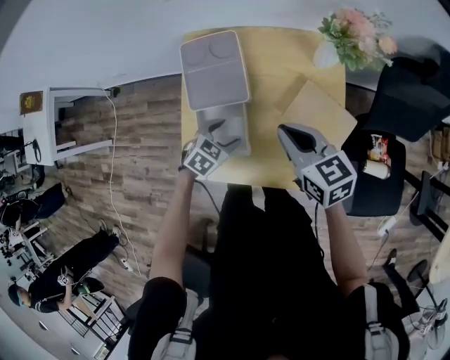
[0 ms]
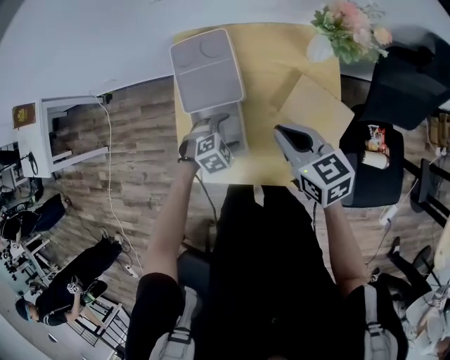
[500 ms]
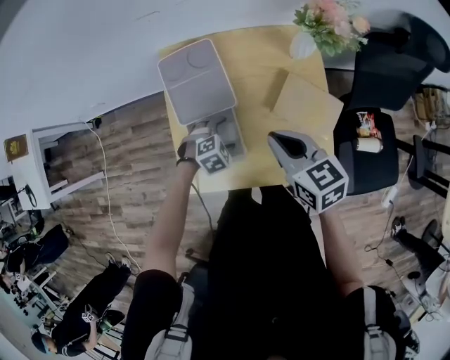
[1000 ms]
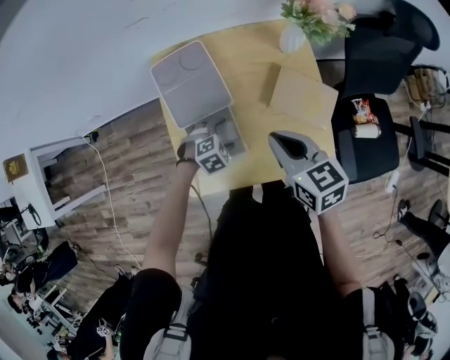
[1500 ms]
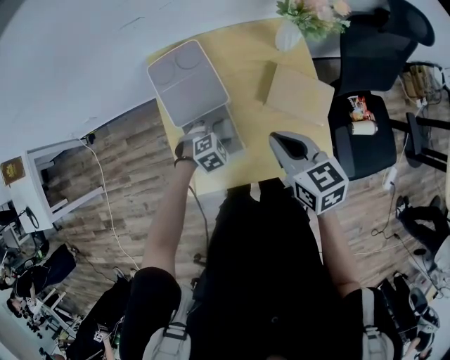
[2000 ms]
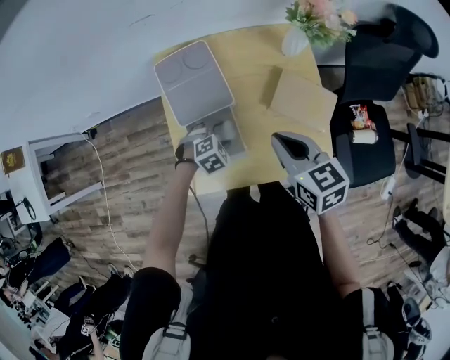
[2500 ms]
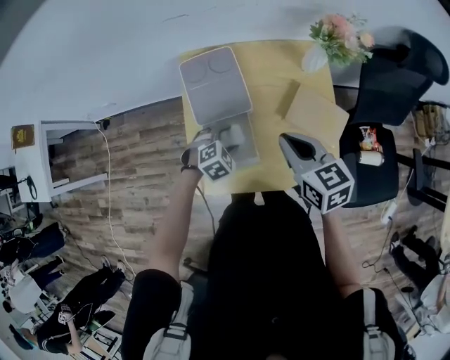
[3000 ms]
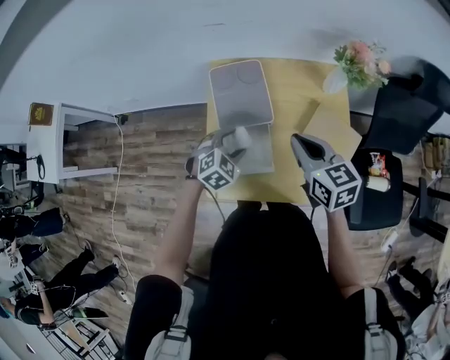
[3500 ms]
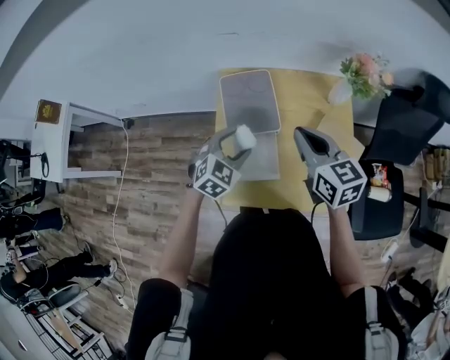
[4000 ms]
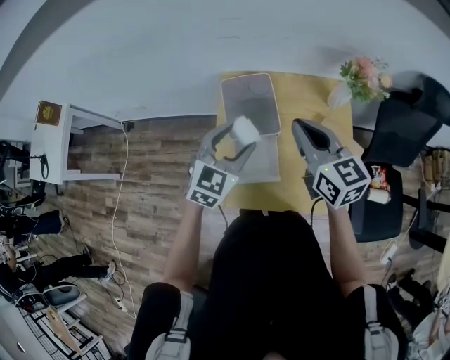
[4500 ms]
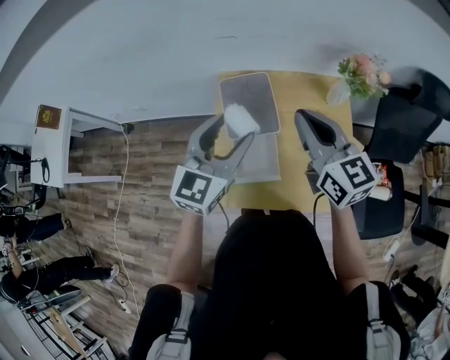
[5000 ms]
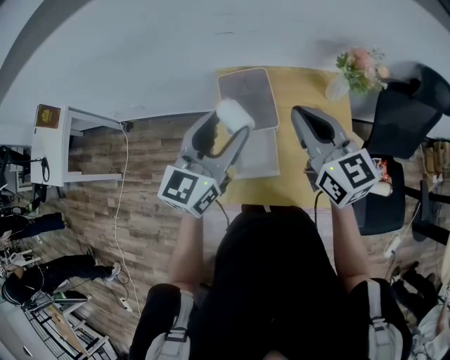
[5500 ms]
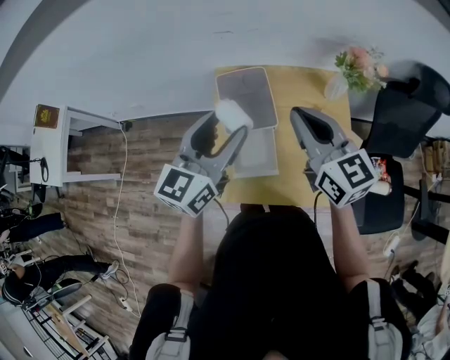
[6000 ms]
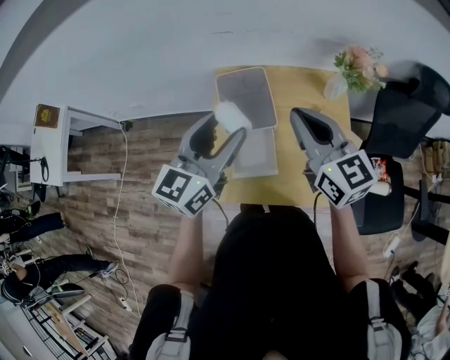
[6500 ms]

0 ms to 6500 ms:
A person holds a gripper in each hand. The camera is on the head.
0 ms to 2000 ms: The right gripper shifts some 5 cm backward. The left gripper rotates roughly 40 degrees.
2000 ms to 4500 ms: The left gripper goes some 30 cm upward, and points its fingers some 40 degrees further upward. Meanwhile the right gripper shifts some 15 cm upward, to the left and forward, and turns by roughly 20 degrees.
4500 ms to 6500 ms: The left gripper moves upward, about 10 cm, and turns by approximately 30 degrees.

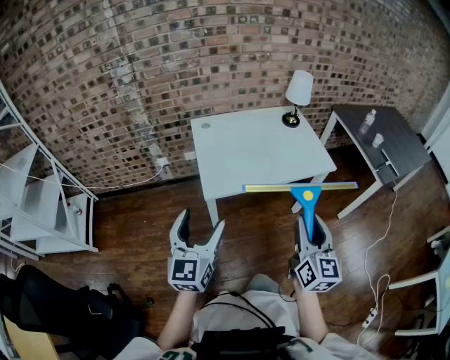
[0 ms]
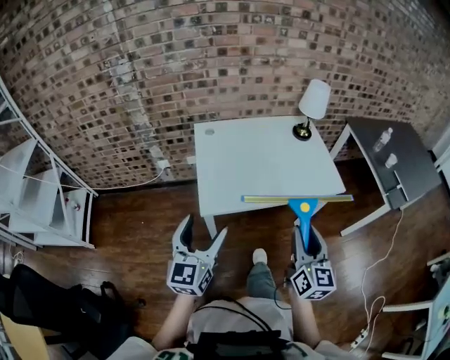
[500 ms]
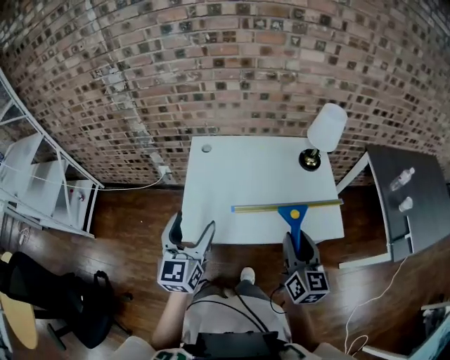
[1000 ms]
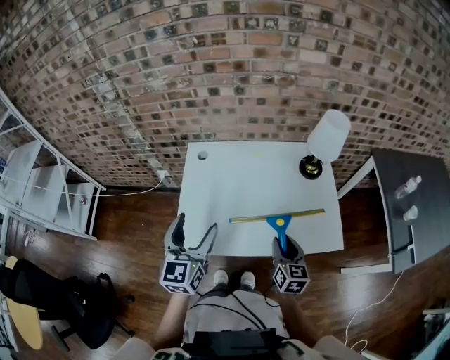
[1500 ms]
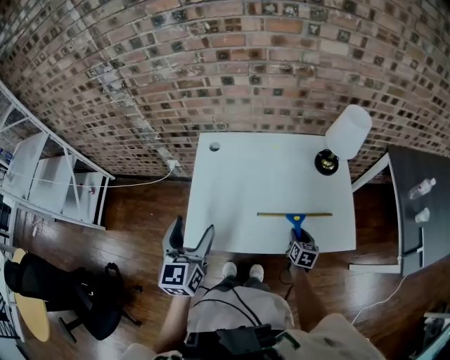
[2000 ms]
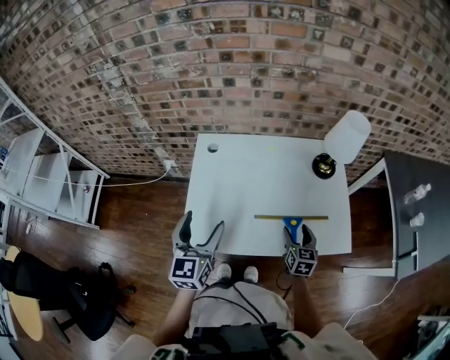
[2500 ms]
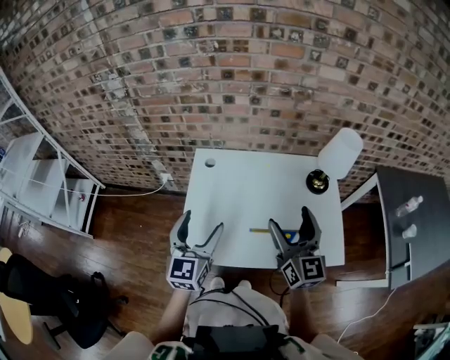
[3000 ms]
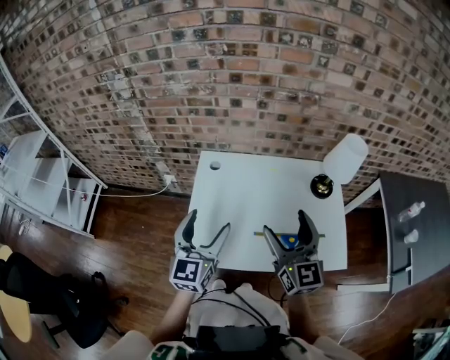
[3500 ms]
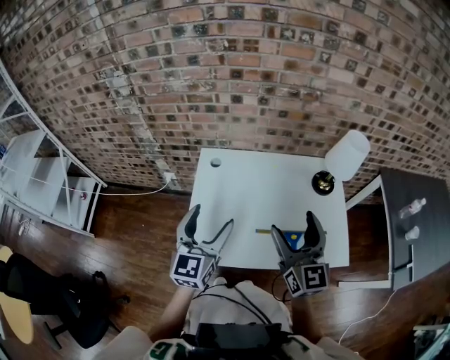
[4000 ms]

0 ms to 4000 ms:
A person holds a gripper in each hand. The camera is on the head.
0 ms to 2000 ms: The left gripper goes roughly 30 cm forward, and swivels roughly 20 degrees; the right gripper heads forward and downward, covering approximately 60 cm, and points its fingers about 40 degrees further downward.
2000 ms to 4000 ms: The right gripper is displaced upward by roughly 40 cm, points its fingers some 40 degrees further upward, and opens its fingers. Meanwhile the left gripper travels forward by some 5 cm.

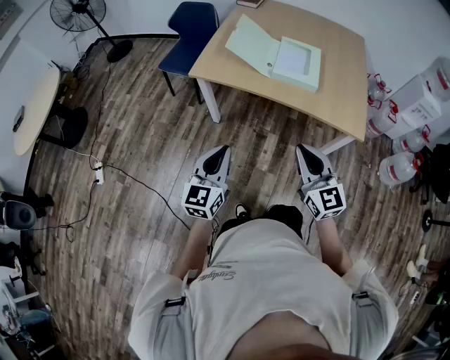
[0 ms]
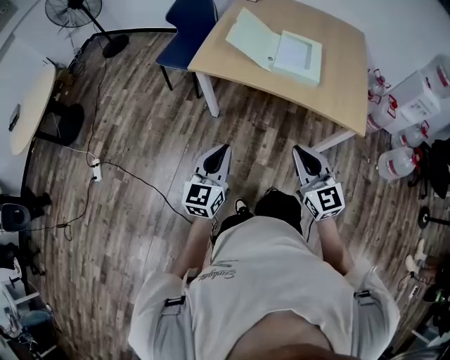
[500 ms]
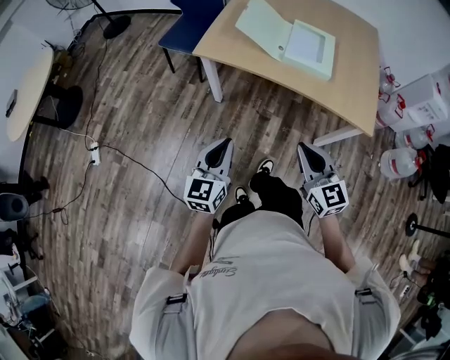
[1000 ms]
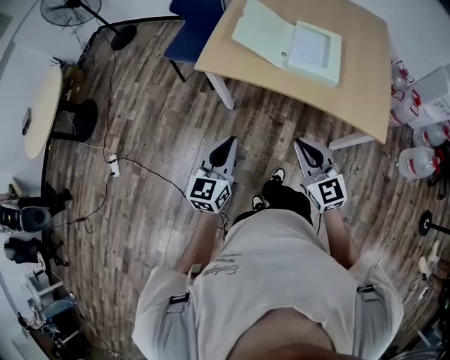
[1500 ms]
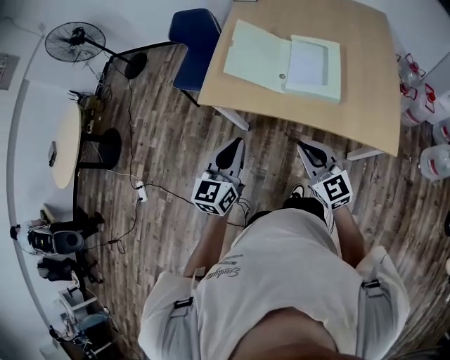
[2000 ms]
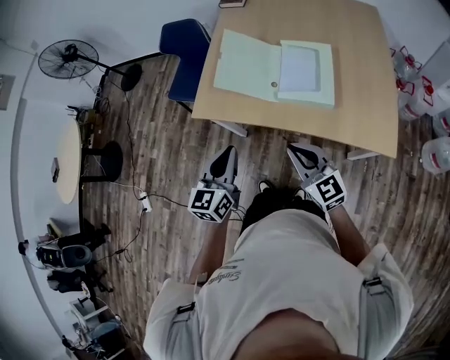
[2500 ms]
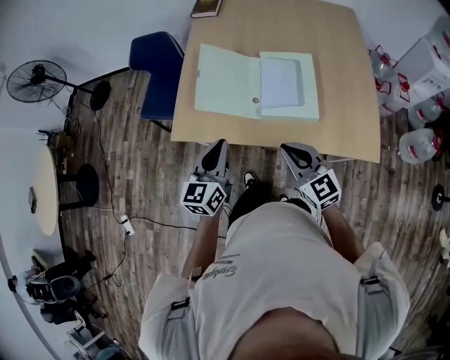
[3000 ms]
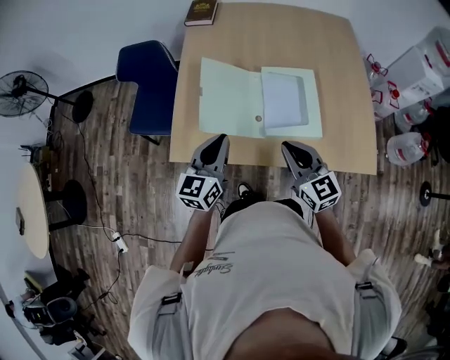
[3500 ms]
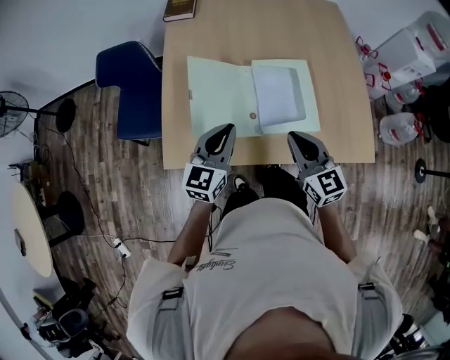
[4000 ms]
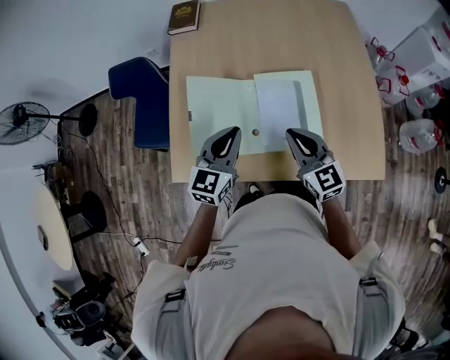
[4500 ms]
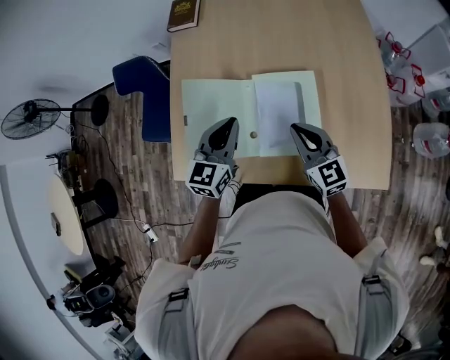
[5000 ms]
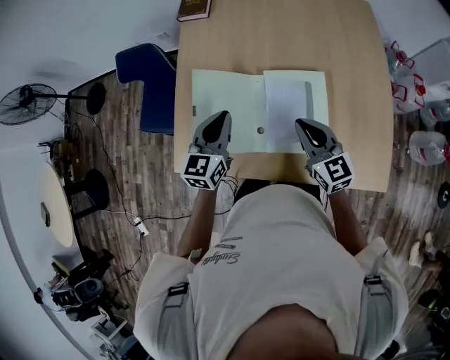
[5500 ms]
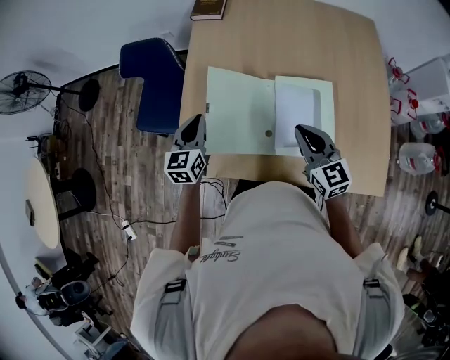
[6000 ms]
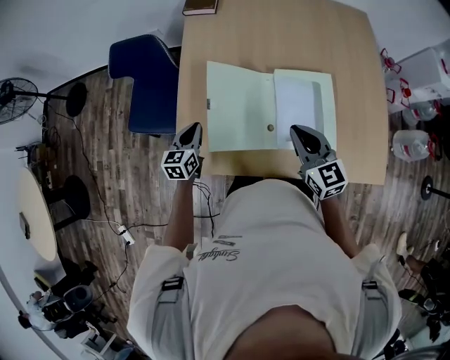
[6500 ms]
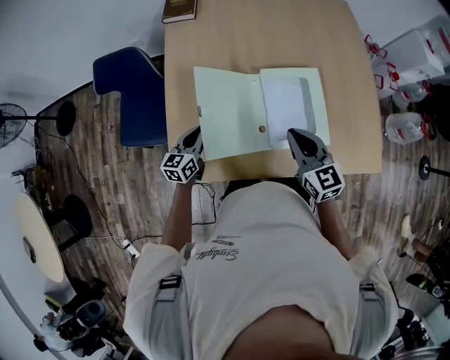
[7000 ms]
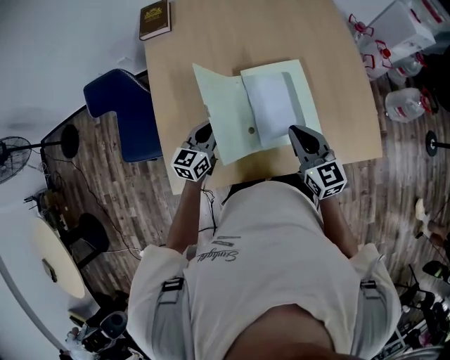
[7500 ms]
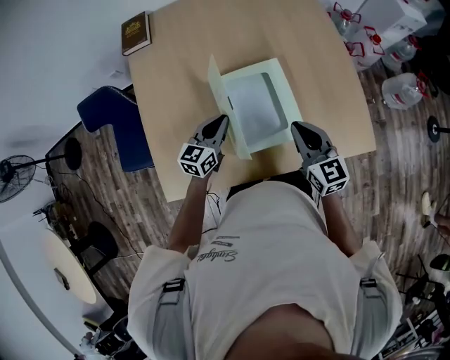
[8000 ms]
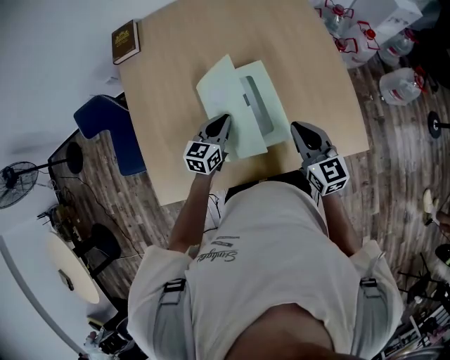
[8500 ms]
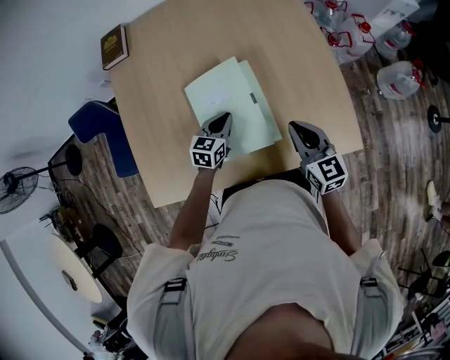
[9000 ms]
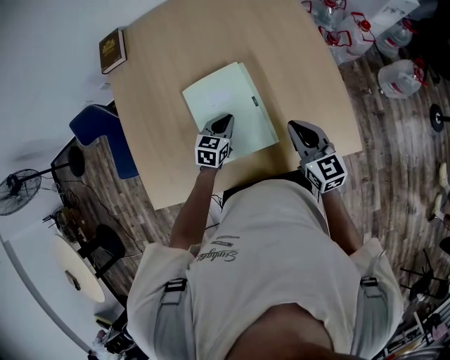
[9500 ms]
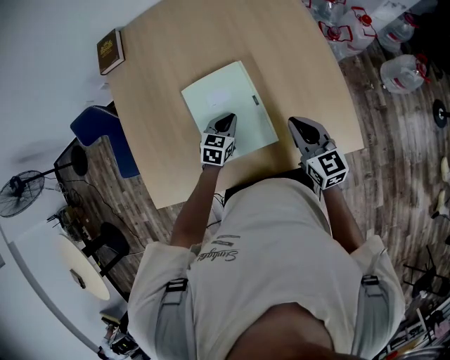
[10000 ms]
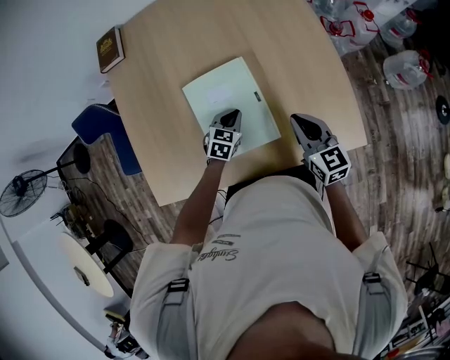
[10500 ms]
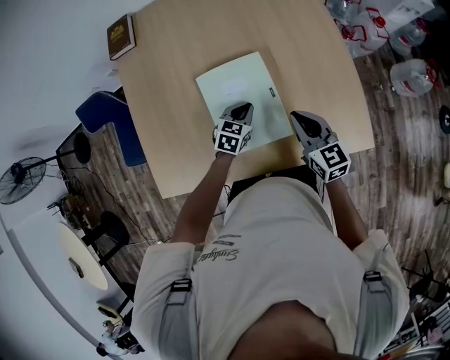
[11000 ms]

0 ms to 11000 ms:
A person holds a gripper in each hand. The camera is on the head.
0 ms to 2000 ms: The grippers both shift forward by approximately 20 cm.
2000 ms to 3500 ms: Both grippers travel together forward, about 20 cm.
3500 ms to 5500 ms: The right gripper shifts some 20 cm forward and to the right. Meanwhile the left gripper is displaced forward by about 15 cm.
5500 ms to 7500 ms: The left gripper heads downward, covering about 10 cm, and swivels about 20 degrees.
7500 ms to 9000 ms: Both grippers travel together to the right, about 20 cm.

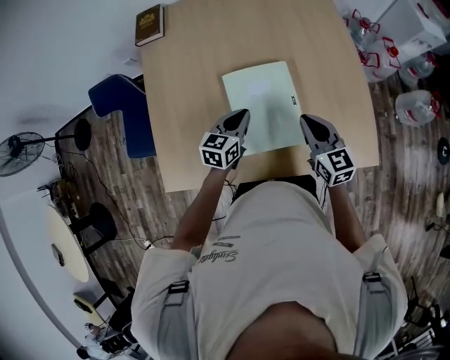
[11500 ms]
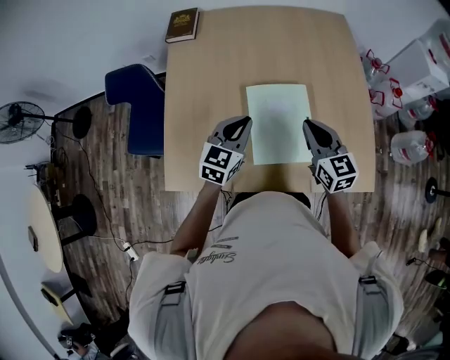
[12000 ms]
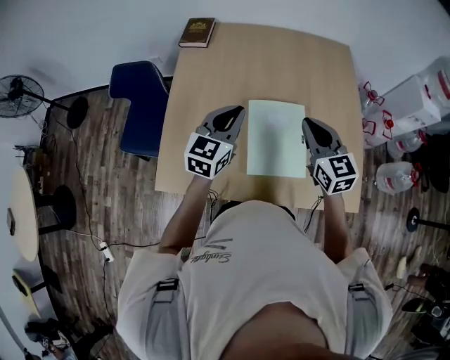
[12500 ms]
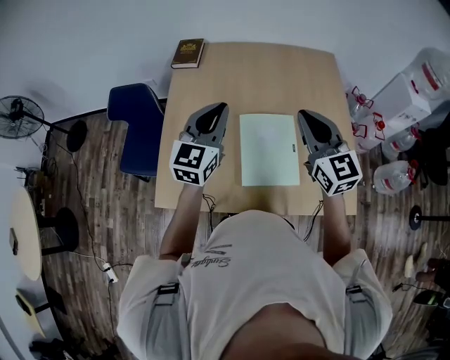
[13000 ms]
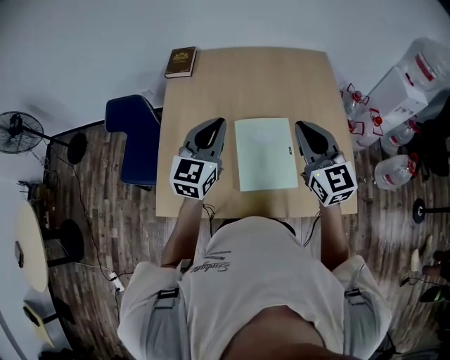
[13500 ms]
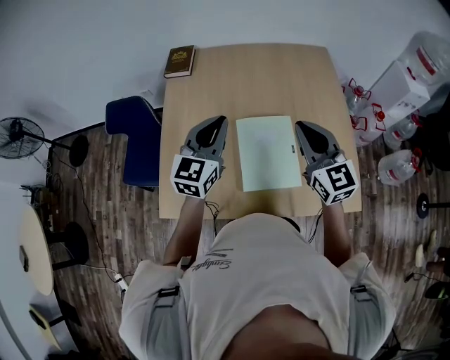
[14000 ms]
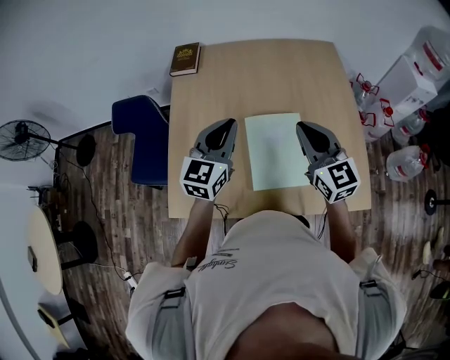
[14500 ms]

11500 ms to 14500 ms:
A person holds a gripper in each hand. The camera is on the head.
11500 ms to 13000 ms: The right gripper is displaced upward by about 25 cm, and rotates approximately 20 degrees, while the left gripper goes about 30 cm upward and to the left, and changes its angle by some 30 degrees.
13000 ms to 14500 ms: The grippers stay close to where they were, moving slightly.

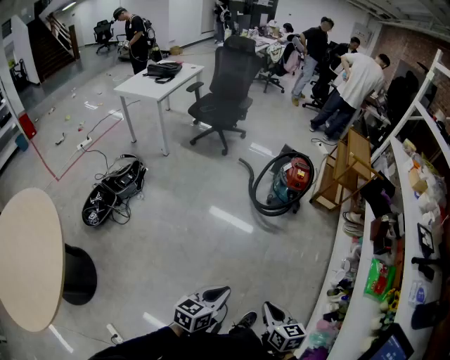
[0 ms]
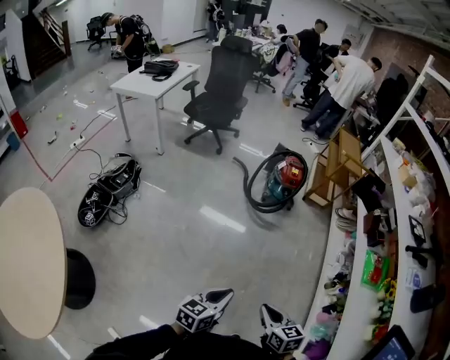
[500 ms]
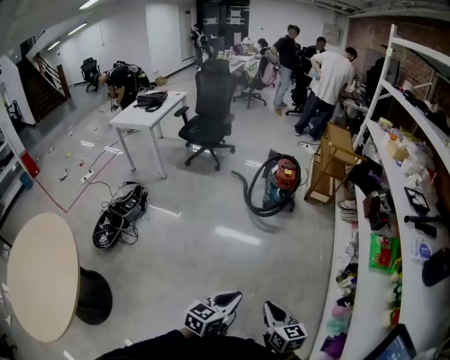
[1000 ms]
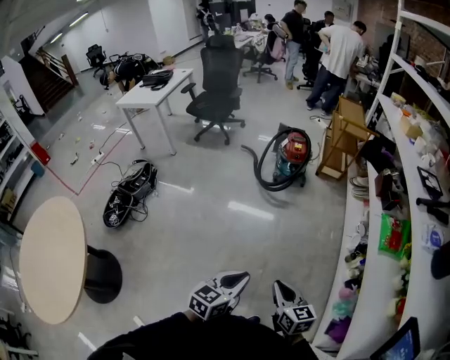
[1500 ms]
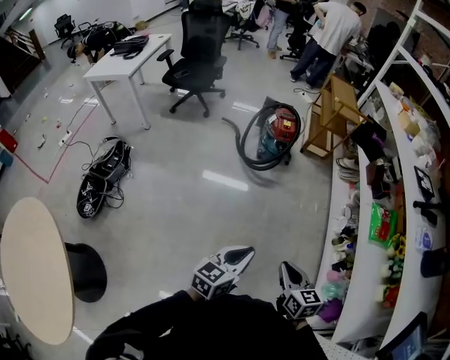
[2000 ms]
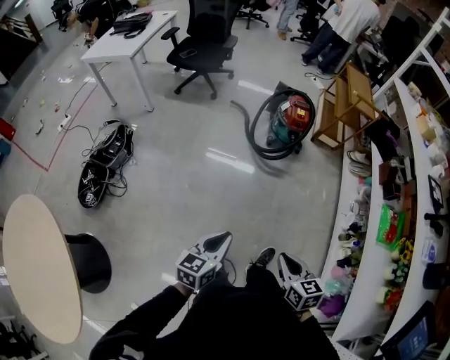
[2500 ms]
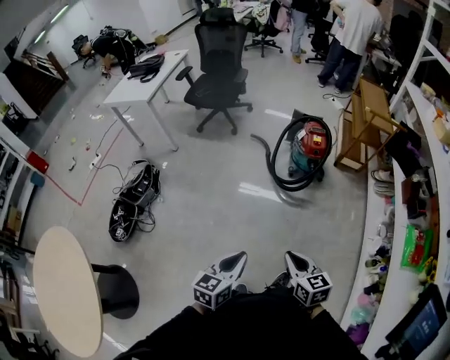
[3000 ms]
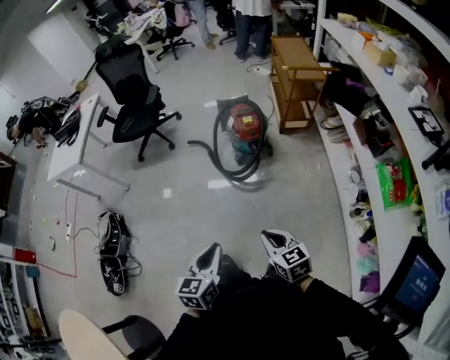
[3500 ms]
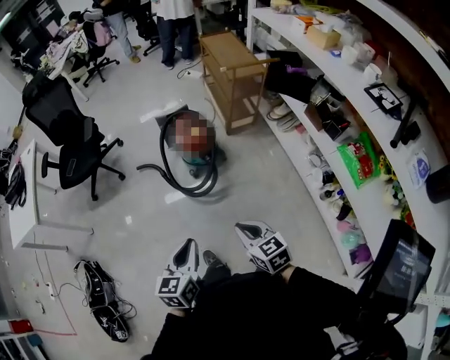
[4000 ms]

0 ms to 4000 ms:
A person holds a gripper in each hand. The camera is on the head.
0 ms to 2000 ms: The left gripper moves left and right over about 15 cm, changing direction 2 times; the right gripper swings left and right, roughly 15 cm each way, with 2 reversals.
2000 ms to 4000 ms: The two grippers travel together, forward, about 40 cm.
